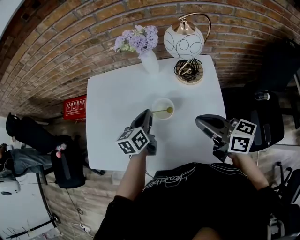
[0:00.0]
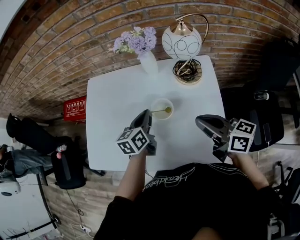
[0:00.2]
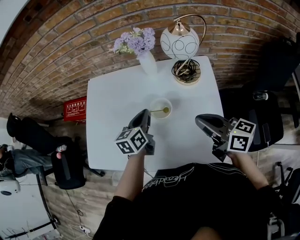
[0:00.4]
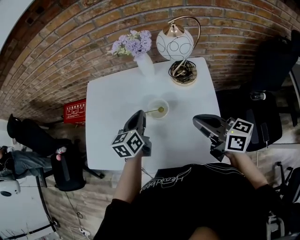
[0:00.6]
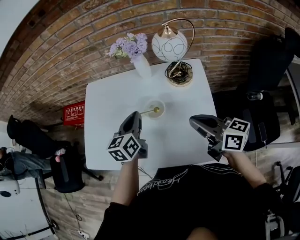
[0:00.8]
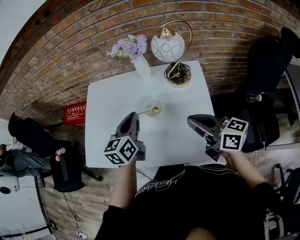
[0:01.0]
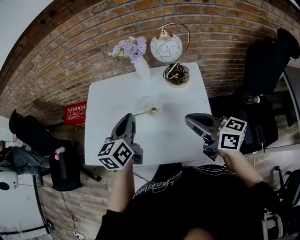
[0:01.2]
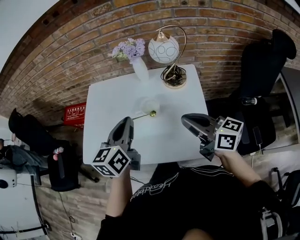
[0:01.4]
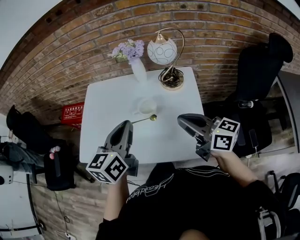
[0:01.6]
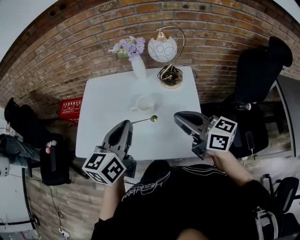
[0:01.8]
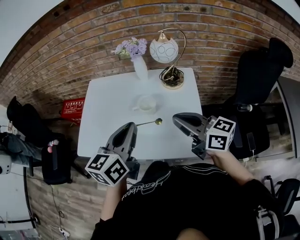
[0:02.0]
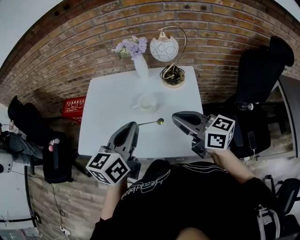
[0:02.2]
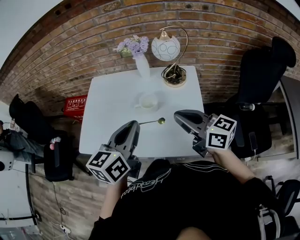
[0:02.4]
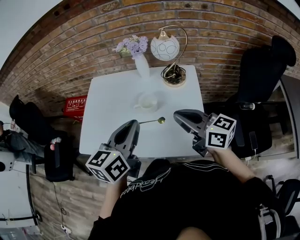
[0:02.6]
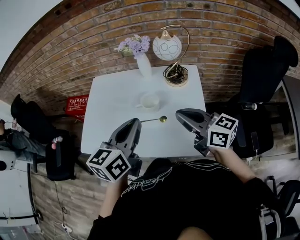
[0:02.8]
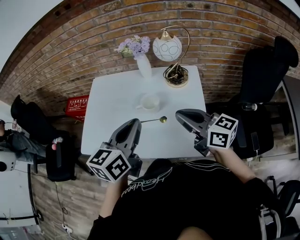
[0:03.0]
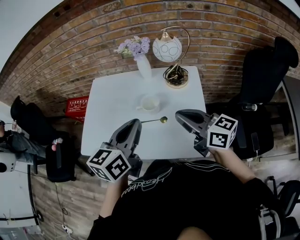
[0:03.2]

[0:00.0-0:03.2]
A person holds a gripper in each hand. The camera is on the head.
0:00.0 to 0:01.6: The left gripper goes roughly 25 cm upward and backward; the right gripper shifts approximately 10 cm backward and upward.
0:01.6 to 0:03.2: There are only small adjustments of the grippers.

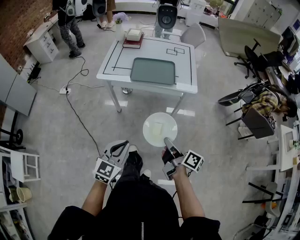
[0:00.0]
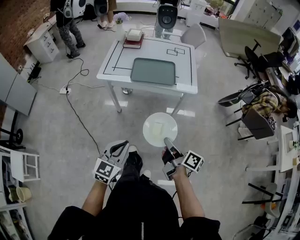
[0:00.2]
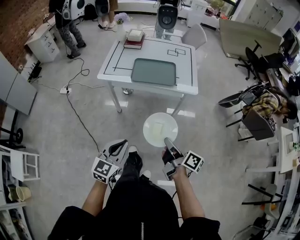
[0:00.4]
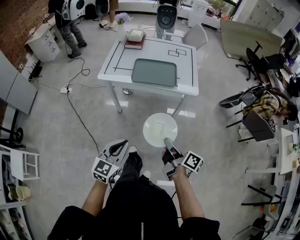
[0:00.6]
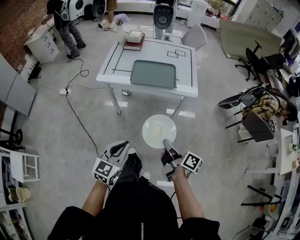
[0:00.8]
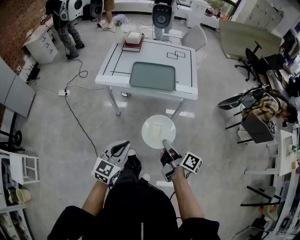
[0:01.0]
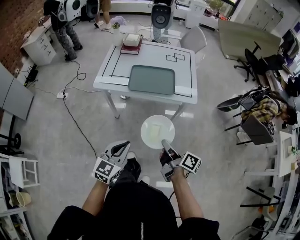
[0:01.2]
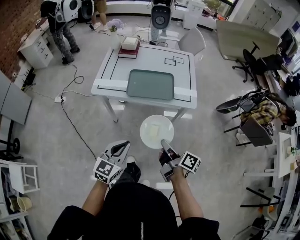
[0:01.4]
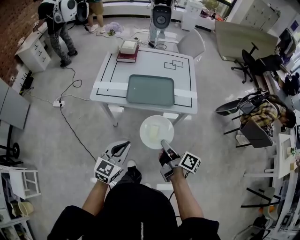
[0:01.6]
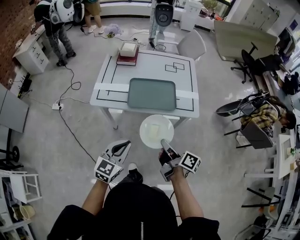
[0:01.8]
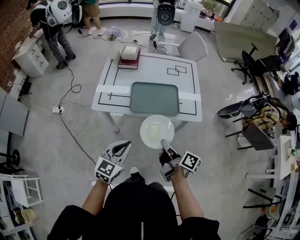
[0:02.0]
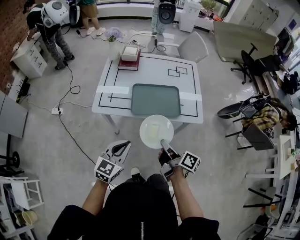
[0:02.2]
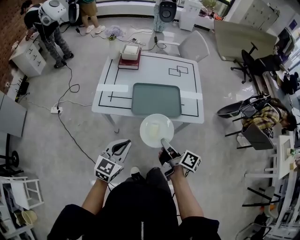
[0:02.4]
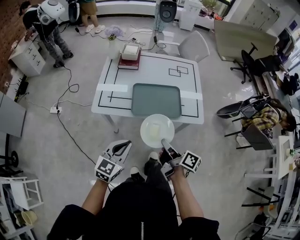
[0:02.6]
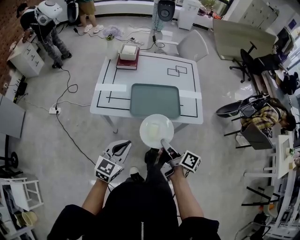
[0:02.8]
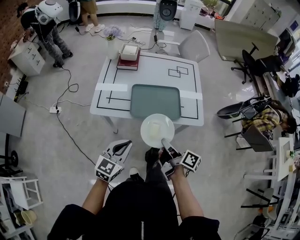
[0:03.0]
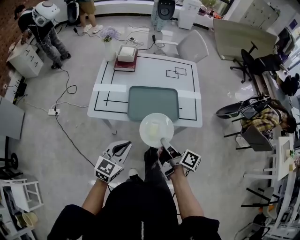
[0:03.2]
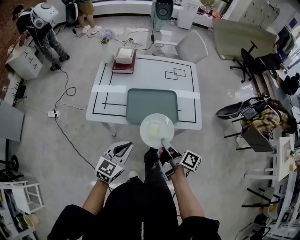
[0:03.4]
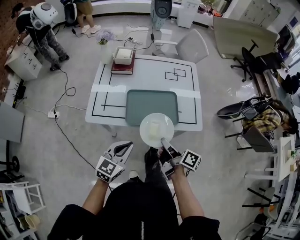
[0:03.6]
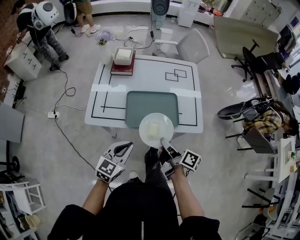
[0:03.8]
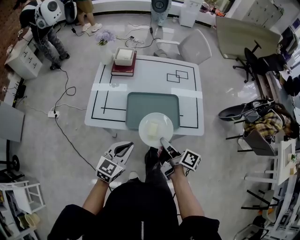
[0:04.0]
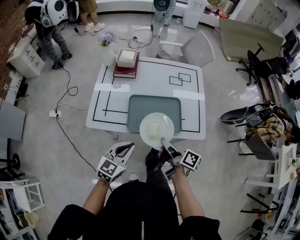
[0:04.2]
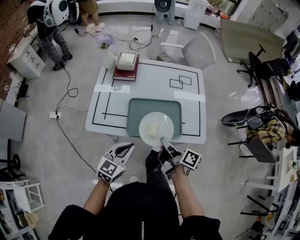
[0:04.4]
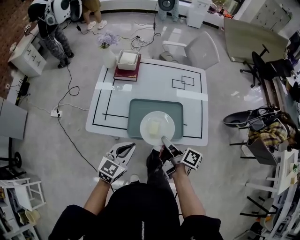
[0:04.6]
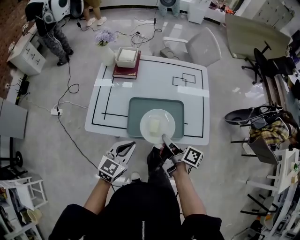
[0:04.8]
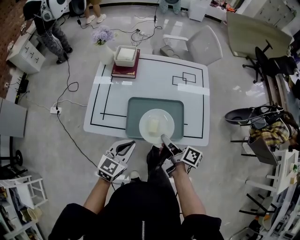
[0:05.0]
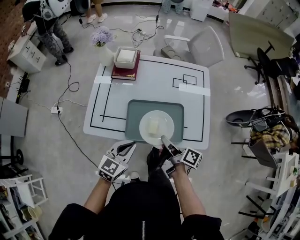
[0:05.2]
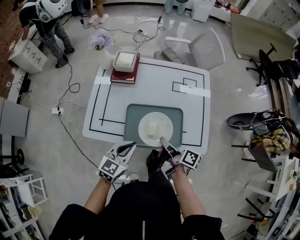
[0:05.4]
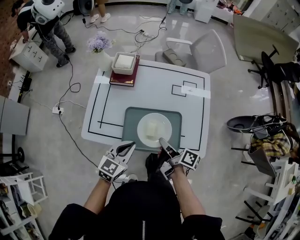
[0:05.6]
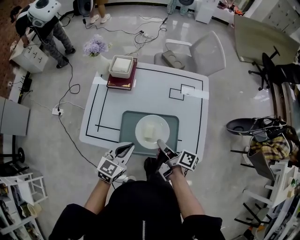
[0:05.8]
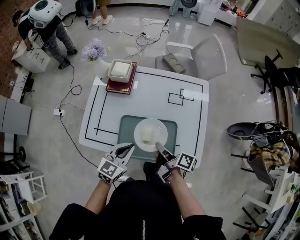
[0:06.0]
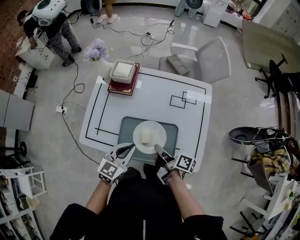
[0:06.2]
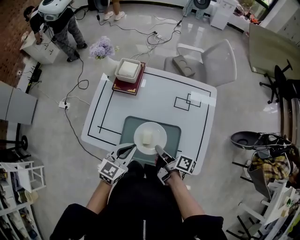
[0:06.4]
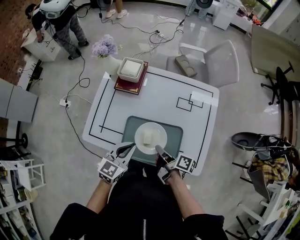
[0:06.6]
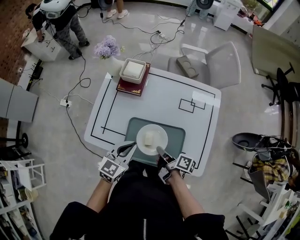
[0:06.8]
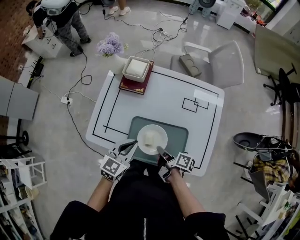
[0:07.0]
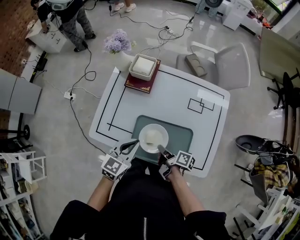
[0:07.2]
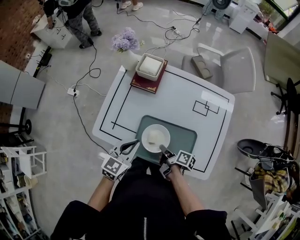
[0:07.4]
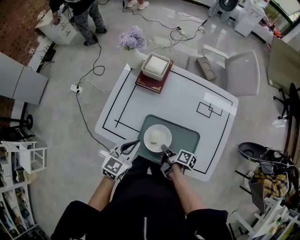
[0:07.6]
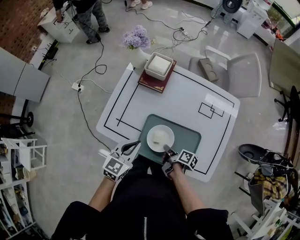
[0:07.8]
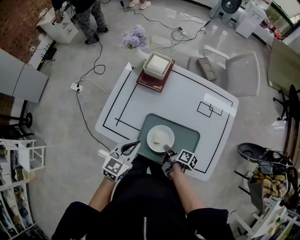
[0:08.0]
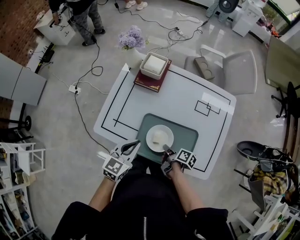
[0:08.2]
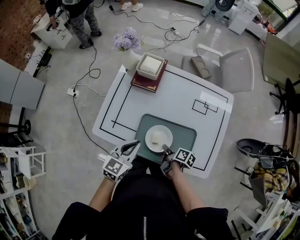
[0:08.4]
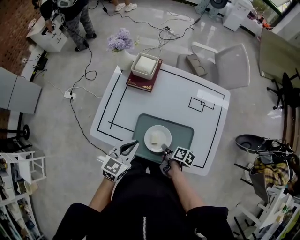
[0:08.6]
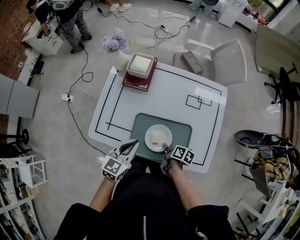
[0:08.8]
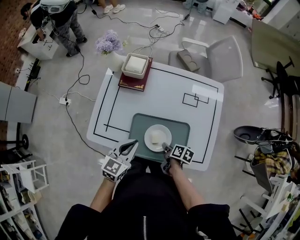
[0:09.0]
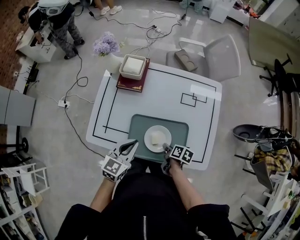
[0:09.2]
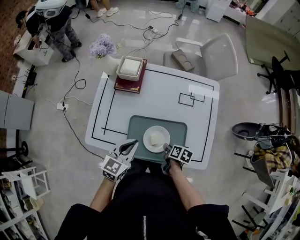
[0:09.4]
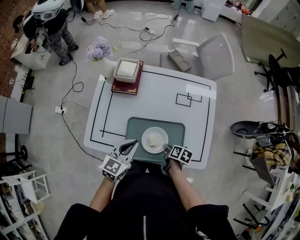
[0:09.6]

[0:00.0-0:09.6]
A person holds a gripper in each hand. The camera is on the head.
0:00.0 to 0:01.6: The left gripper shifts by about 15 cm.
0:01.6 to 0:03.2: The left gripper changes place by about 15 cm.
0:03.2 to 0:04.8: The left gripper moves some 15 cm.
0:04.8 to 0:06.4: The left gripper shifts by some 15 cm.
0:06.4 to 0:08.0: The left gripper shifts by approximately 10 cm.
0:08.0 to 0:09.6: The left gripper changes place by roughly 5 cm.

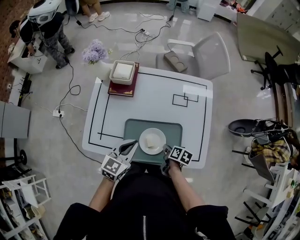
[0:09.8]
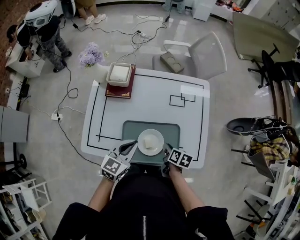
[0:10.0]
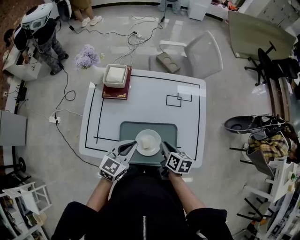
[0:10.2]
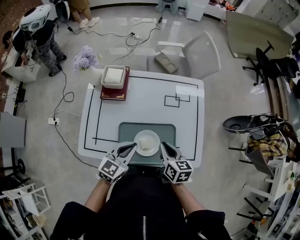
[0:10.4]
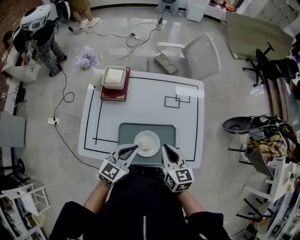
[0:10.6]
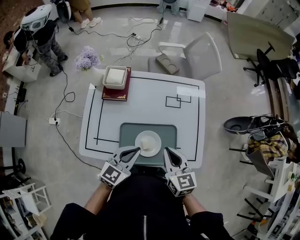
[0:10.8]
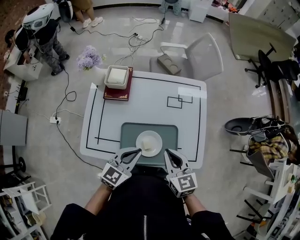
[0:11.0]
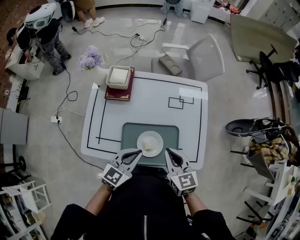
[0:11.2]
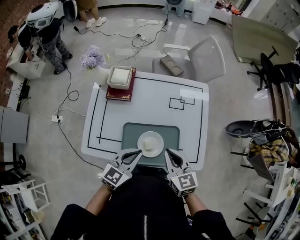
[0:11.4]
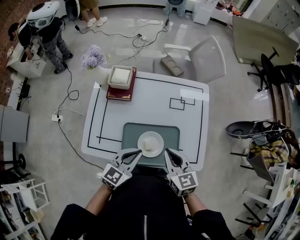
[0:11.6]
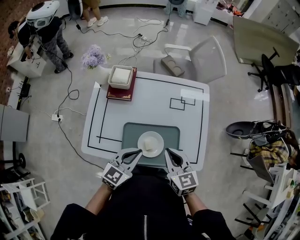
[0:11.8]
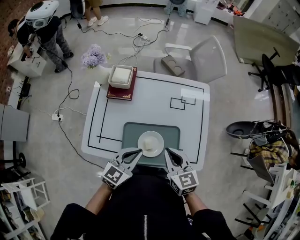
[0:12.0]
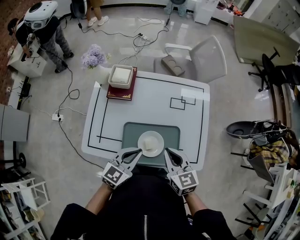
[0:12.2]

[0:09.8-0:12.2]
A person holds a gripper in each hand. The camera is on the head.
0:09.8 to 0:11.0: The left gripper ends up about 5 cm from where it was.

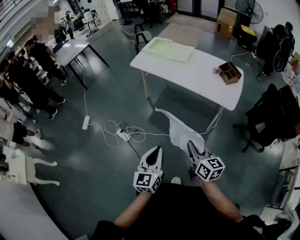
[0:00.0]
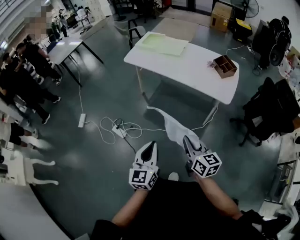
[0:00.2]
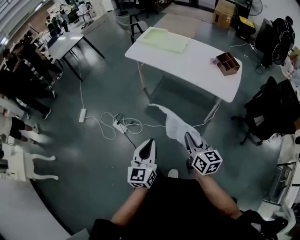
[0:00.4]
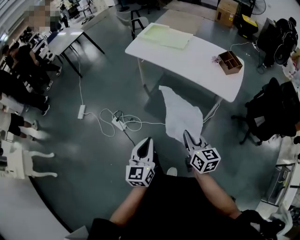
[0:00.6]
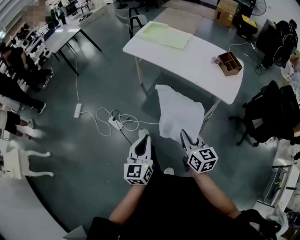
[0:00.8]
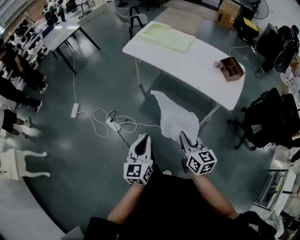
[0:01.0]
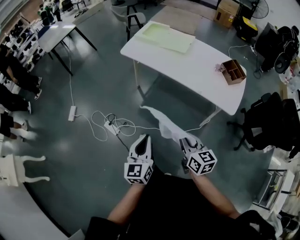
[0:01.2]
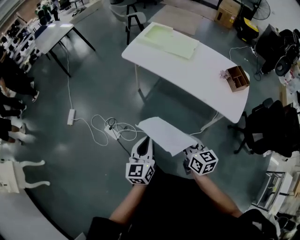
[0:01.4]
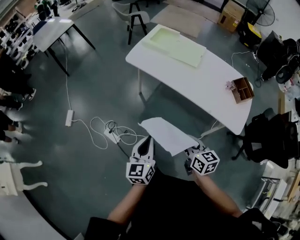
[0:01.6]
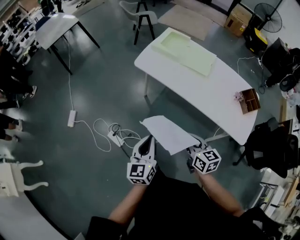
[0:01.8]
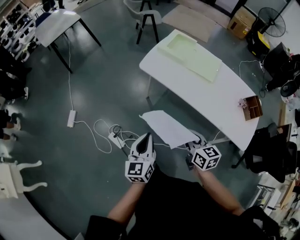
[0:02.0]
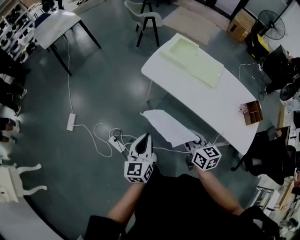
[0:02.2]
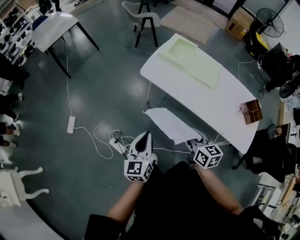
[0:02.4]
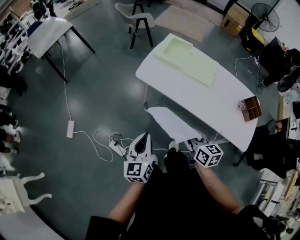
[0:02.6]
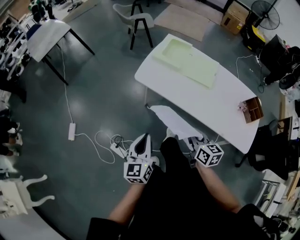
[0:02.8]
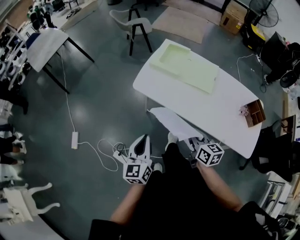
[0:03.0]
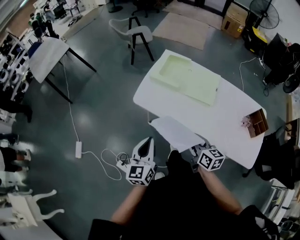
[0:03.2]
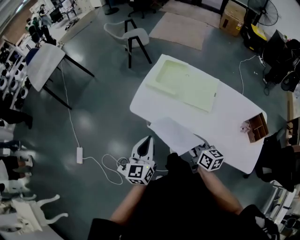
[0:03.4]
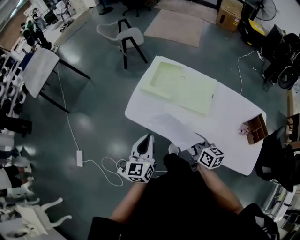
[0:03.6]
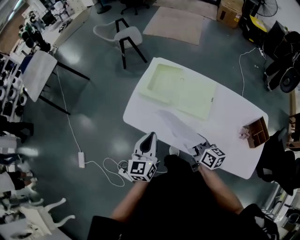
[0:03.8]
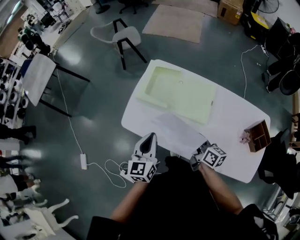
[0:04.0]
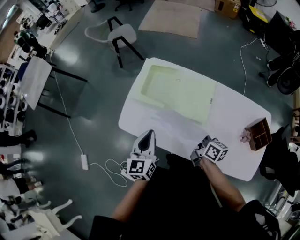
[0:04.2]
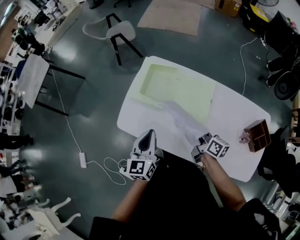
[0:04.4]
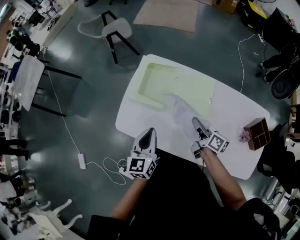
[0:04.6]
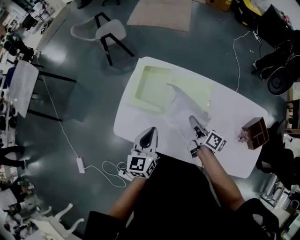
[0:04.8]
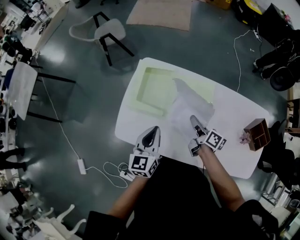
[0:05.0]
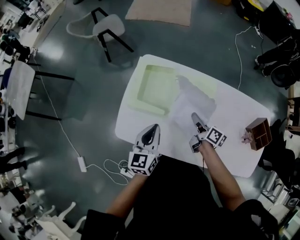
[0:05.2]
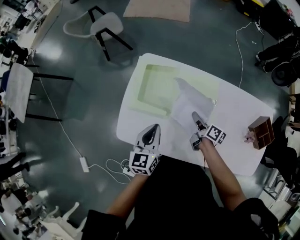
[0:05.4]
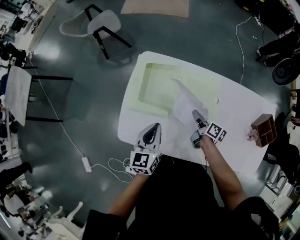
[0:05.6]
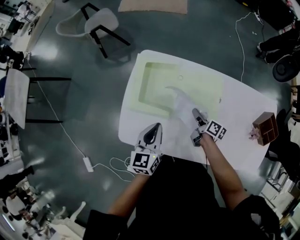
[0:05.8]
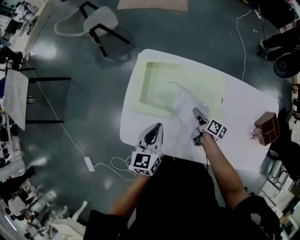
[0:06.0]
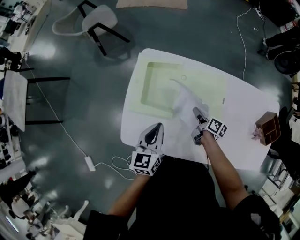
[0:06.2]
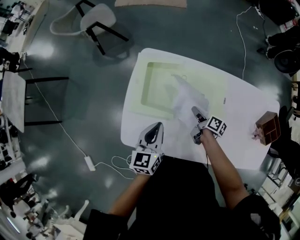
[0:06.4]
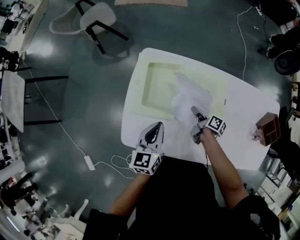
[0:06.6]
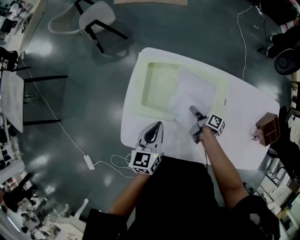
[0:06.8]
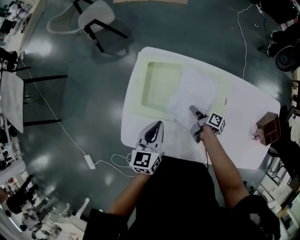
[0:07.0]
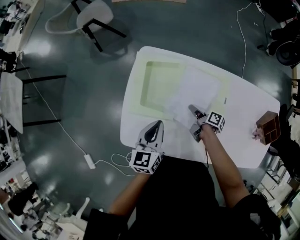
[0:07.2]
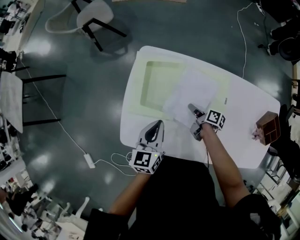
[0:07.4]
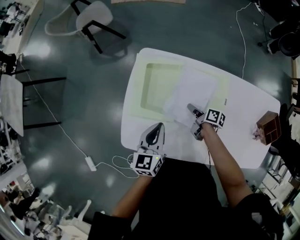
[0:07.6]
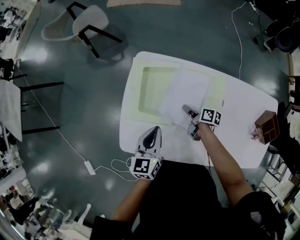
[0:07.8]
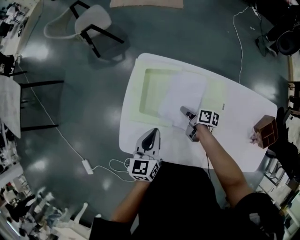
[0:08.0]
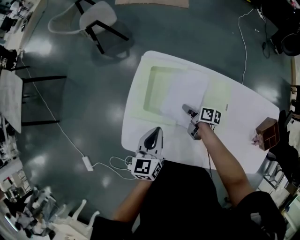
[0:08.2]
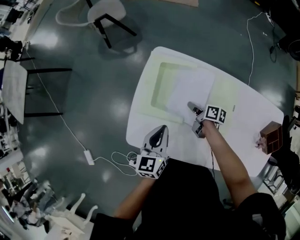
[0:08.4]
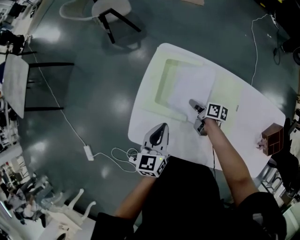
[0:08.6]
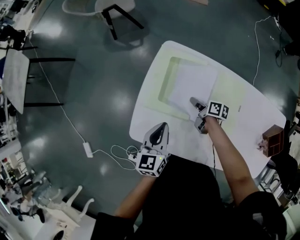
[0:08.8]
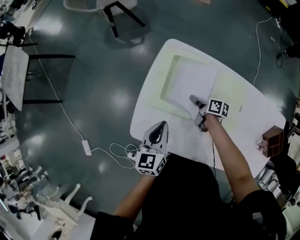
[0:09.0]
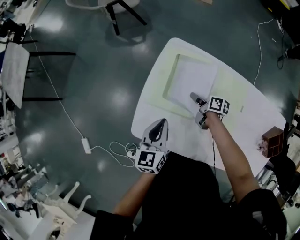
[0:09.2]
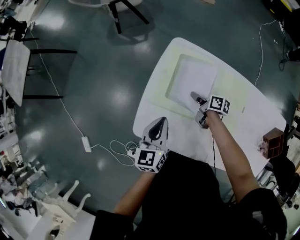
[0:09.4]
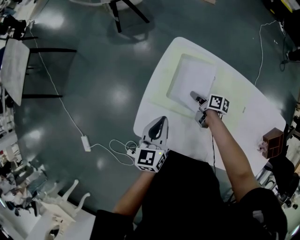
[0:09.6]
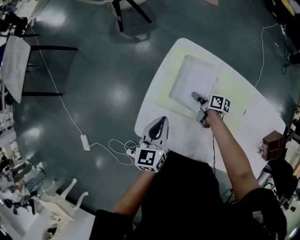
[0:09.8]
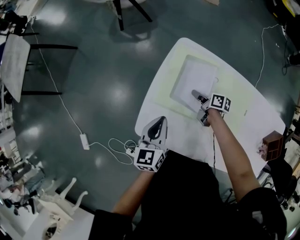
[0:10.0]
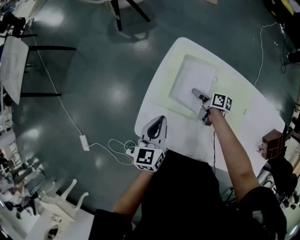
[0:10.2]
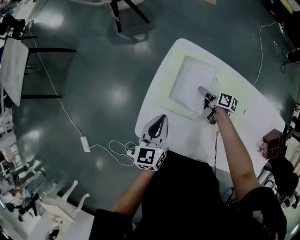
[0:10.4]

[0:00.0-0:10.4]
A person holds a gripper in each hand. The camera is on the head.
0:00.0 to 0:01.4: Both grippers travel together forward, approximately 25 cm.
0:01.4 to 0:03.0: The grippers both shift forward by about 35 cm.
0:03.0 to 0:04.4: Both grippers move forward and to the right, roughly 35 cm. The right gripper changes its angle by some 30 degrees.
0:04.4 to 0:06.0: The left gripper goes about 15 cm forward and downward. The right gripper shifts approximately 20 cm downward and forward, and turns by approximately 30 degrees.
0:06.0 to 0:07.4: The right gripper changes place by roughly 5 cm.
0:07.4 to 0:09.0: The left gripper travels to the left by roughly 10 cm, while the right gripper moves to the left and forward, some 10 cm, and swivels about 20 degrees.
0:09.0 to 0:10.4: The right gripper opens up.
